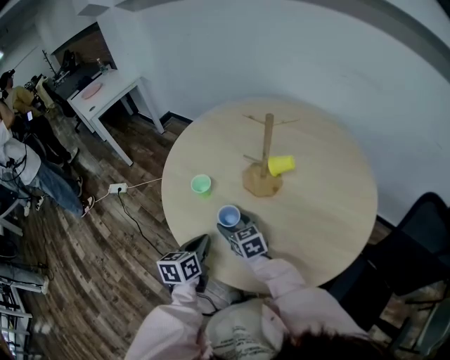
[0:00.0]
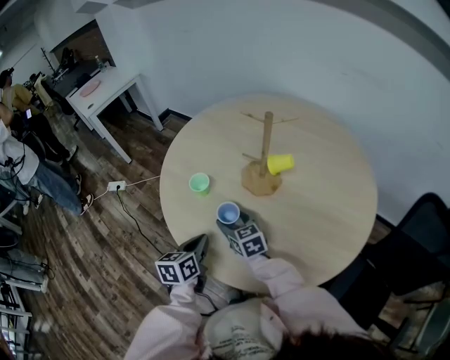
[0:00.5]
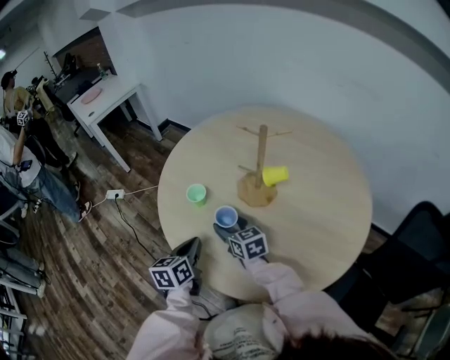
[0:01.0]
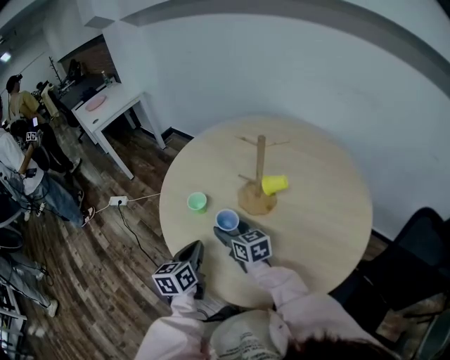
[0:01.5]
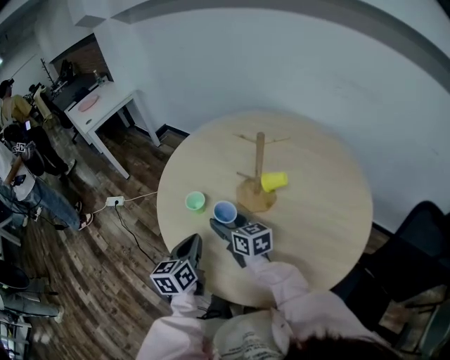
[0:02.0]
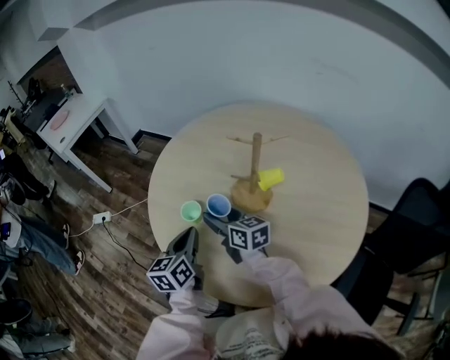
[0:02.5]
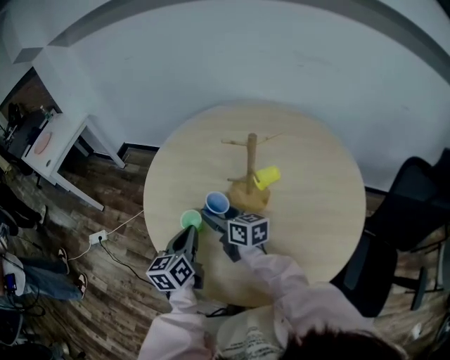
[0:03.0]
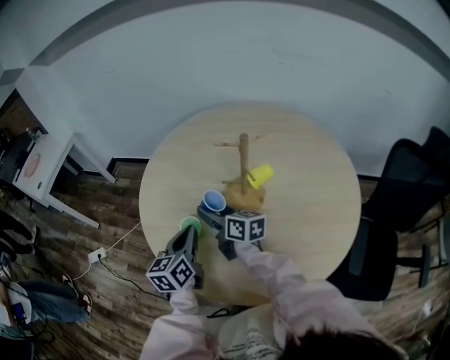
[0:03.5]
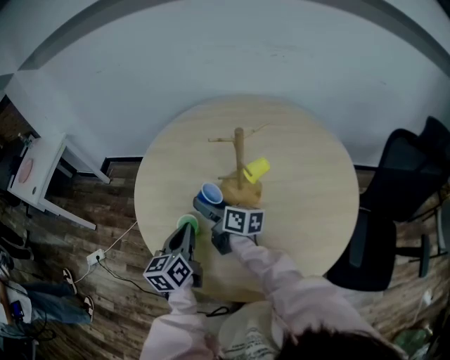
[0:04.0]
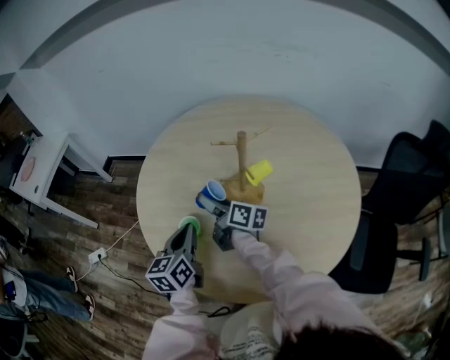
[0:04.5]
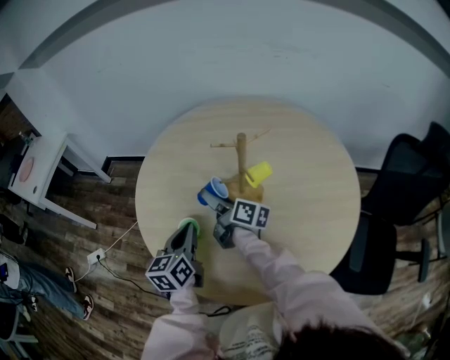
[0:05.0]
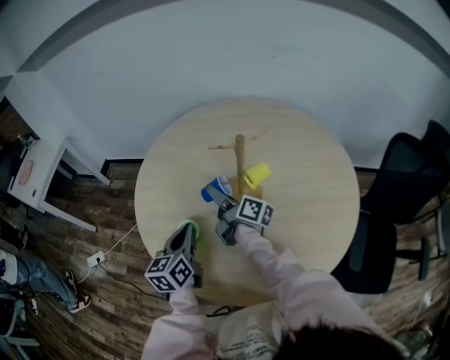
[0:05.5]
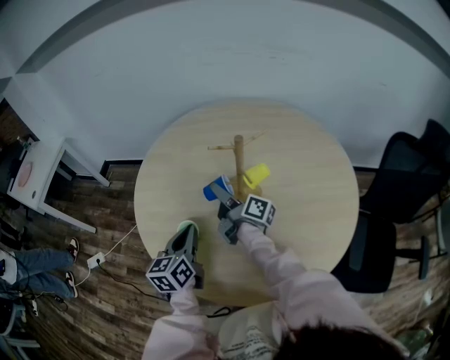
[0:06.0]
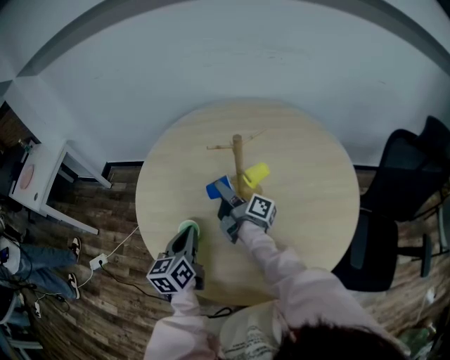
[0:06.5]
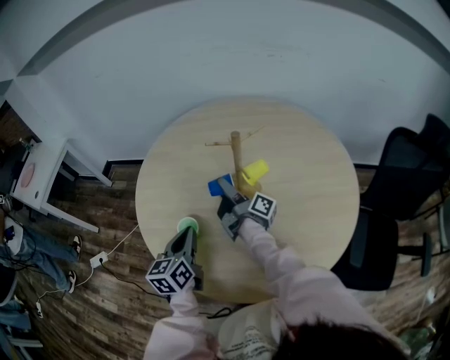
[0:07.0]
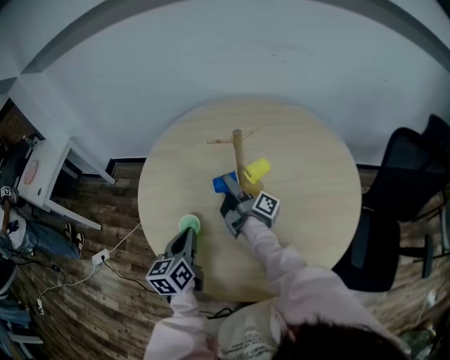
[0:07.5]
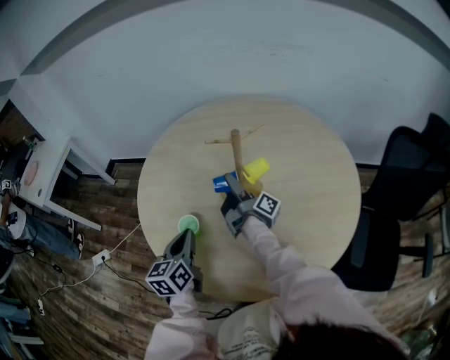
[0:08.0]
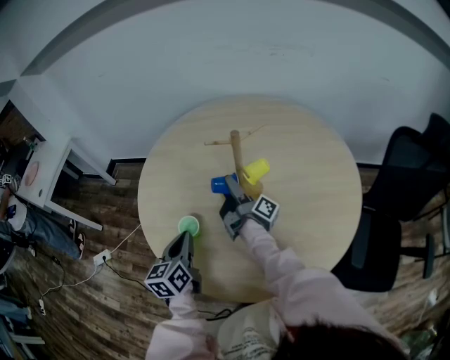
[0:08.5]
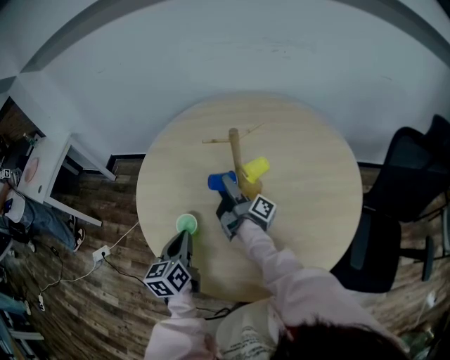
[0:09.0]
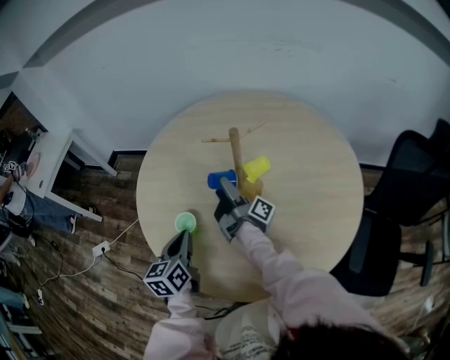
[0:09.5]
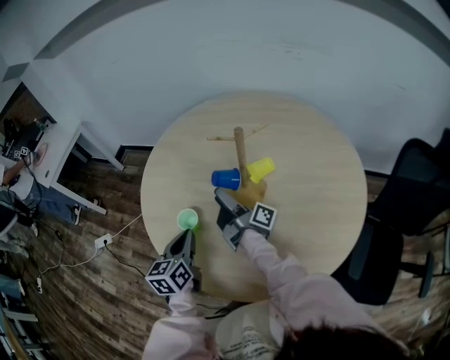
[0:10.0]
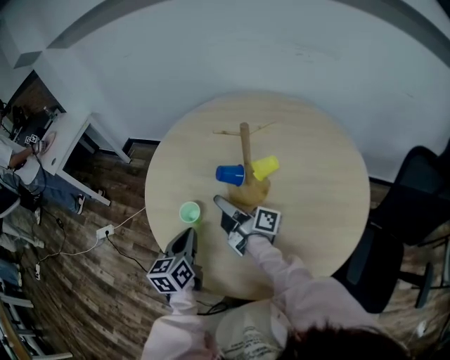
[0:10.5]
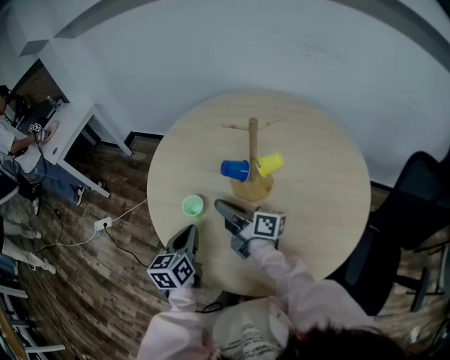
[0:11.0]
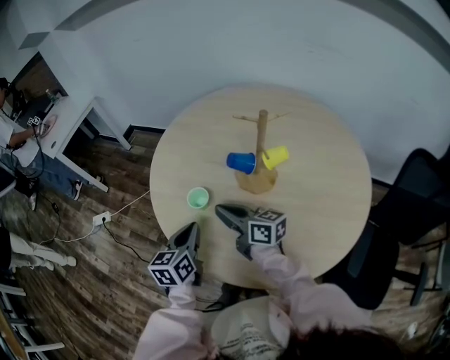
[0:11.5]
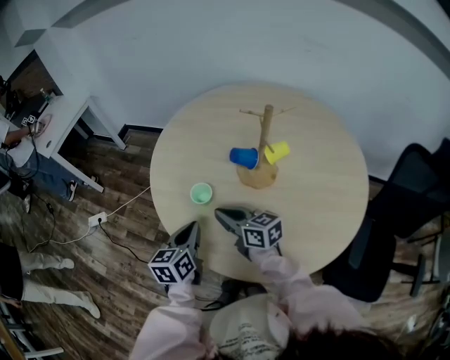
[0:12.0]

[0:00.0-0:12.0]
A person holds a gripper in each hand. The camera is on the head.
0:00.0 to 0:02.0: The grippers both shift upward by some 5 cm. The right gripper changes its angle by roughly 20 degrees.
0:02.0 to 0:04.0: The grippers both shift forward by some 10 cm. The left gripper changes its angle by approximately 20 degrees; the right gripper turns by approximately 40 degrees.
0:04.0 to 0:06.0: The right gripper moves to the right, roughly 5 cm, and rotates approximately 30 degrees.
0:06.0 to 0:08.0: The right gripper swivels approximately 20 degrees.
0:08.0 to 0:10.0: The right gripper moves about 5 cm.
0:10.0 to 0:12.0: The right gripper travels backward and to the left by some 15 cm, rotates around the line of its fingers by about 50 degrees, counterclockwise from behind, and closes, while the left gripper ends up about 5 cm from where it was.

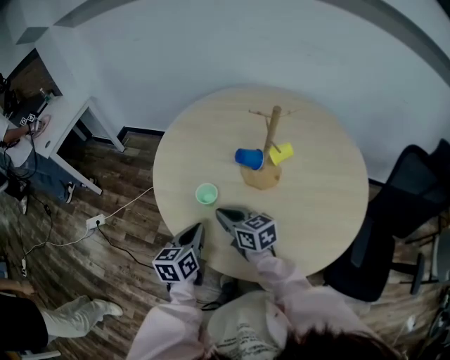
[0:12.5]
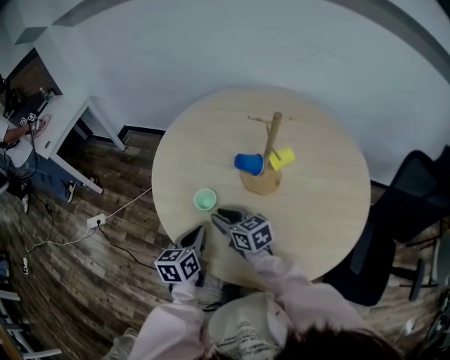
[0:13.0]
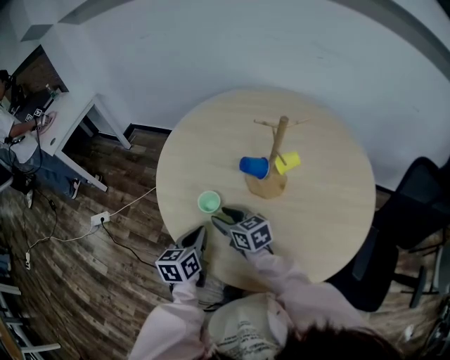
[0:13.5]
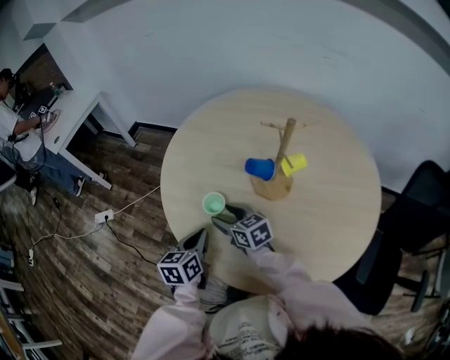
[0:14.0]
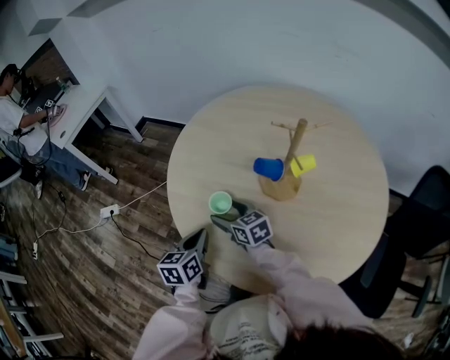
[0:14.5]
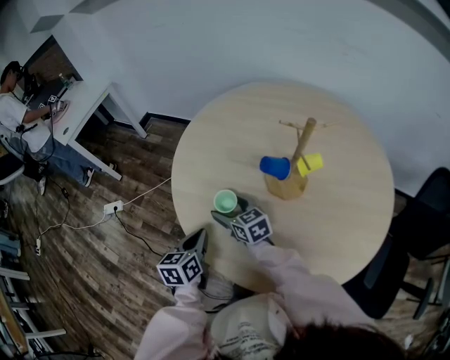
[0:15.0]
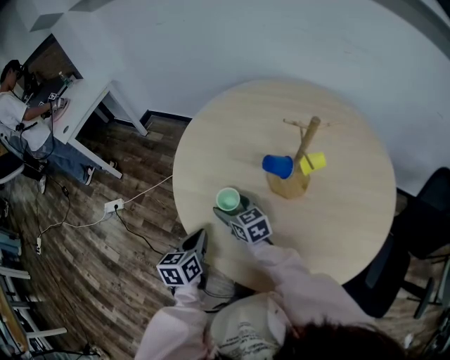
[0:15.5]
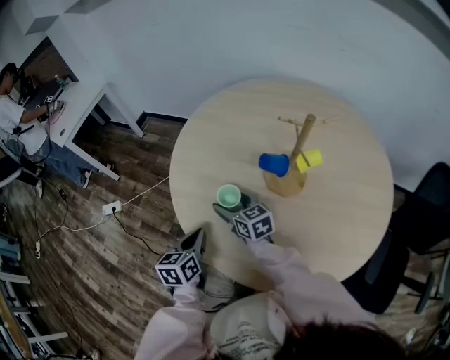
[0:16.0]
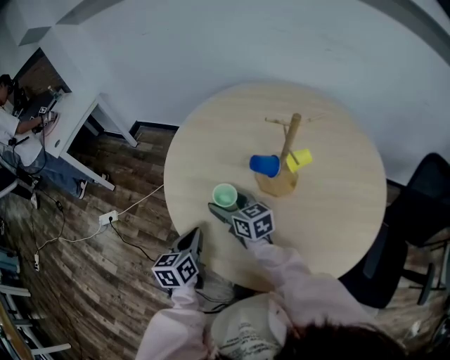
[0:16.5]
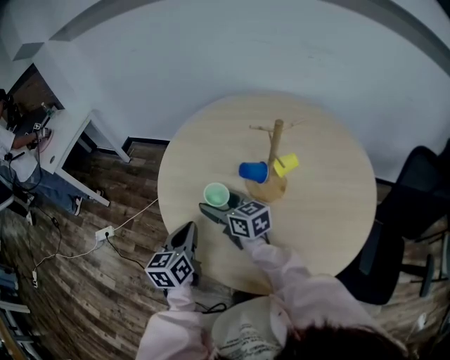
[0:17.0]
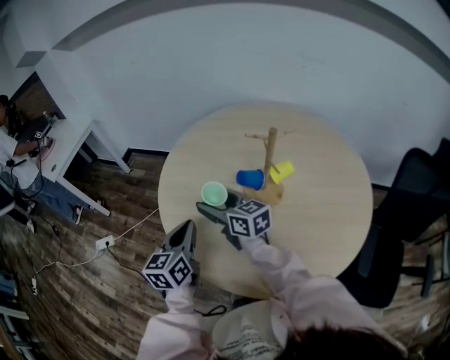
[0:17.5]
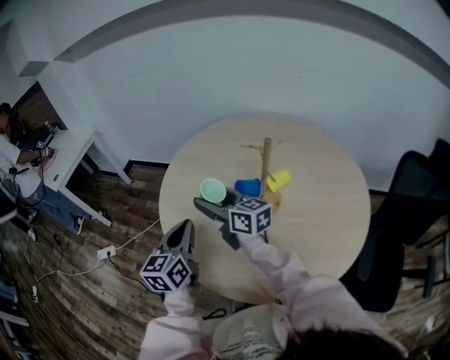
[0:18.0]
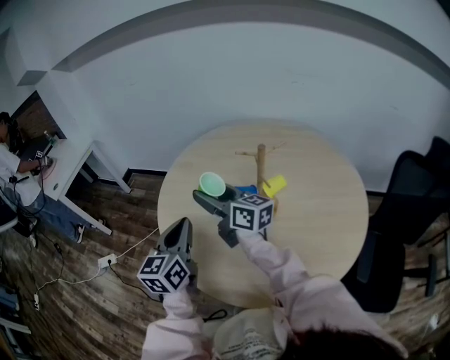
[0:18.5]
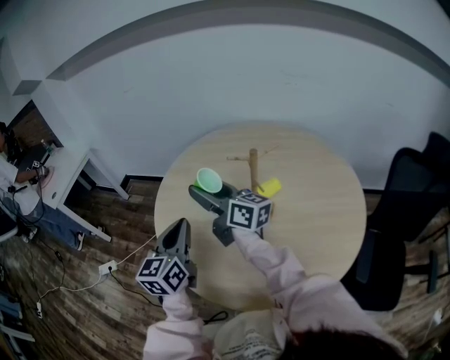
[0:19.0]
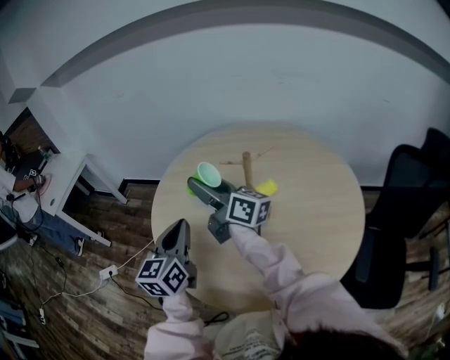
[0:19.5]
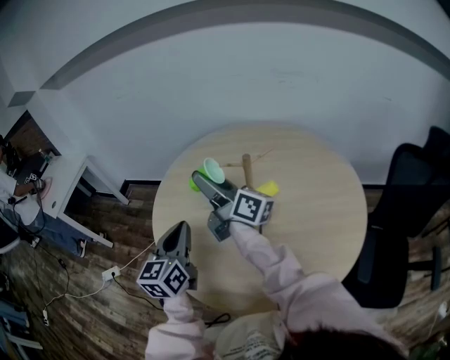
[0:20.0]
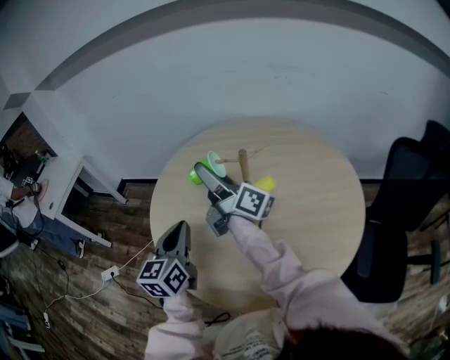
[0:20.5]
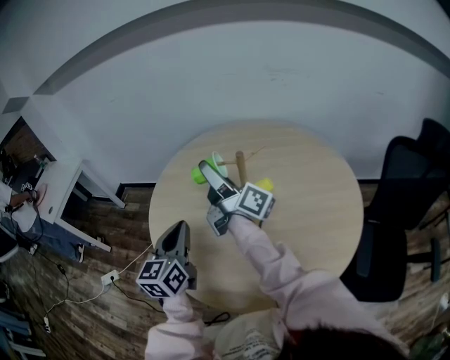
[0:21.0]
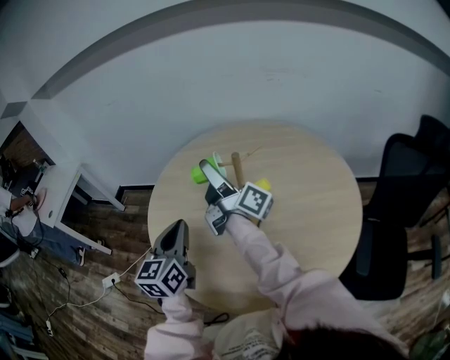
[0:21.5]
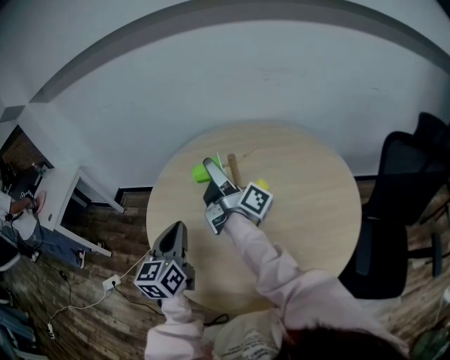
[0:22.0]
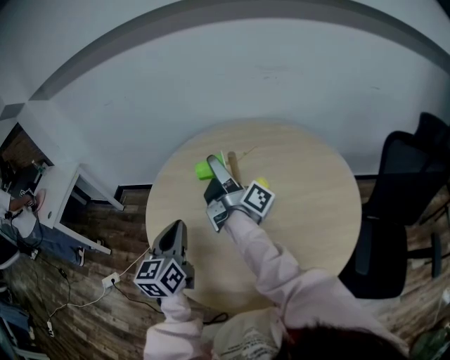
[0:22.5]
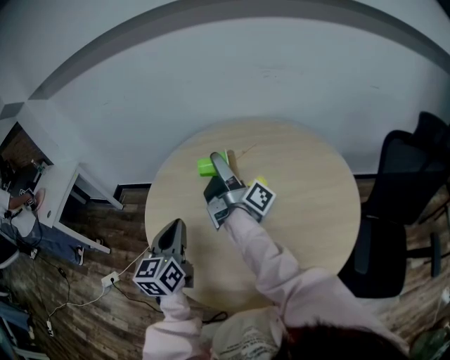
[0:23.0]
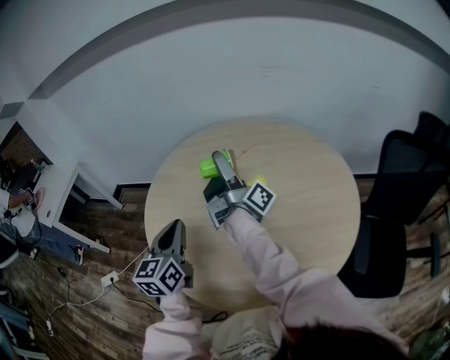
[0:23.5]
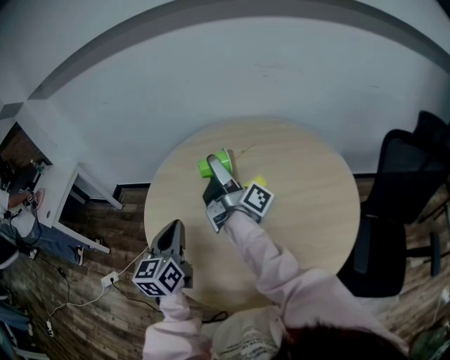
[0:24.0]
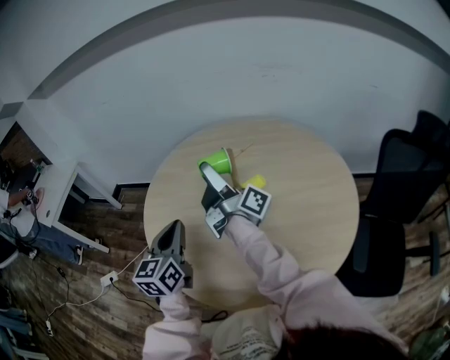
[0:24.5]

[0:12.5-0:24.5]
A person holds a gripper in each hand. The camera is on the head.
0:12.5 to 0:14.5: The right gripper moves forward and downward, approximately 10 cm, and opens up.
0:14.5 to 0:16.5: The right gripper ends up approximately 5 cm from where it was.
0:16.5 to 0:18.5: The grippers both shift upward by roughly 20 cm. The left gripper changes its angle by some 20 degrees. Meanwhile the right gripper rotates approximately 30 degrees.
0:18.5 to 0:20.5: The right gripper moves to the right and upward, roughly 10 cm, and rotates roughly 30 degrees.
0:20.5 to 0:22.5: The right gripper changes place by about 5 cm, and rotates approximately 30 degrees.
0:22.5 to 0:24.5: There are only small adjustments of the grippers.

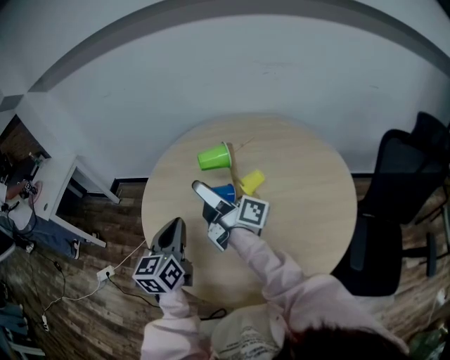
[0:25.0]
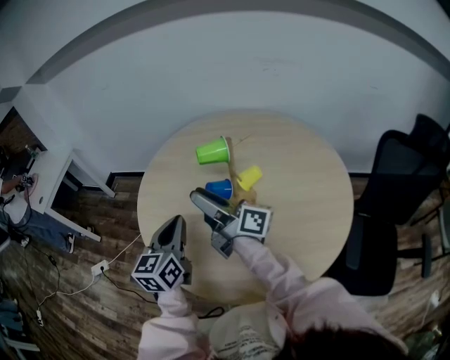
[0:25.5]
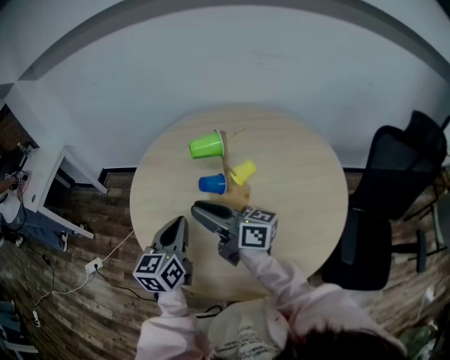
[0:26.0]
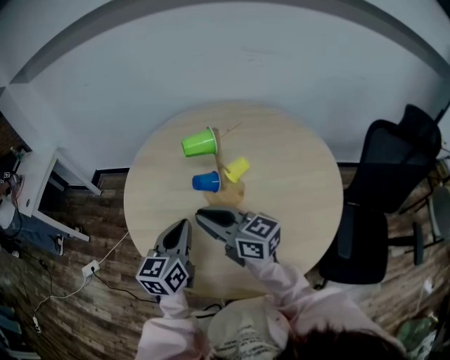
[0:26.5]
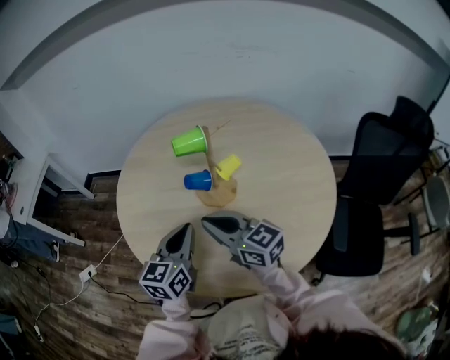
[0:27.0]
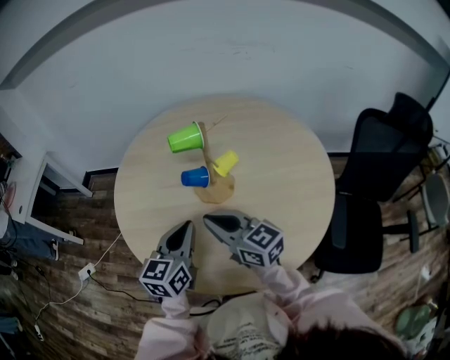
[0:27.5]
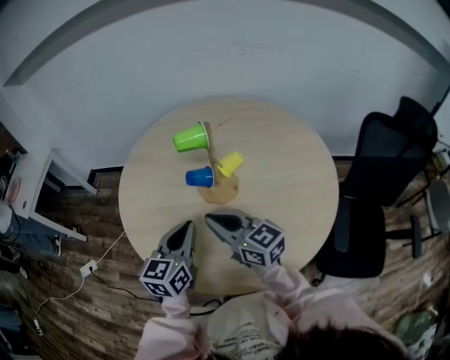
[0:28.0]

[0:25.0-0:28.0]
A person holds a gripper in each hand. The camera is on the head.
0:25.0 to 0:26.5: The left gripper changes place by approximately 5 cm; the right gripper shifts roughly 10 cm backward and downward, twists approximately 40 degrees counterclockwise, seen from behind, and closes.
0:26.5 to 0:28.0: The grippers make only small movements.
